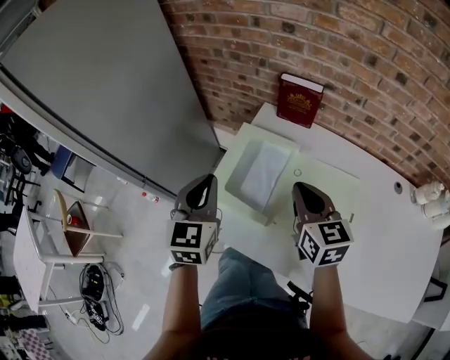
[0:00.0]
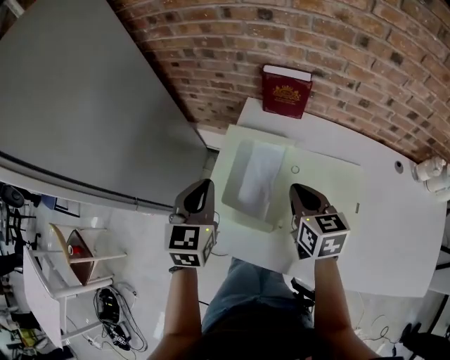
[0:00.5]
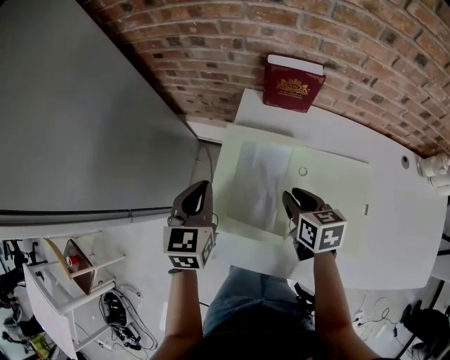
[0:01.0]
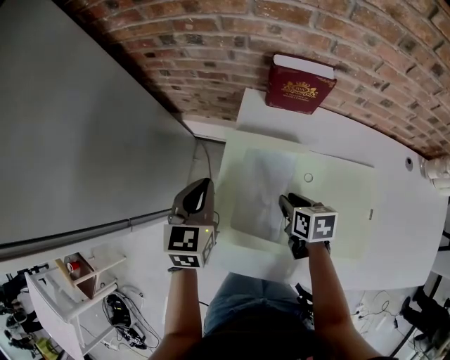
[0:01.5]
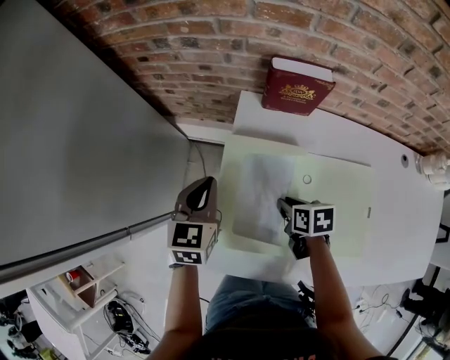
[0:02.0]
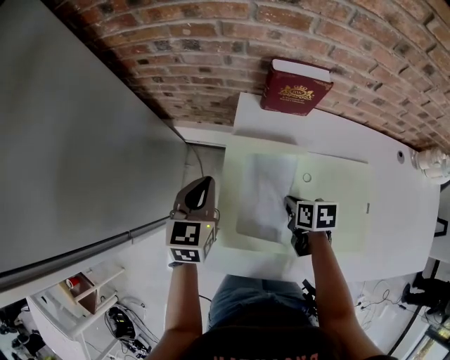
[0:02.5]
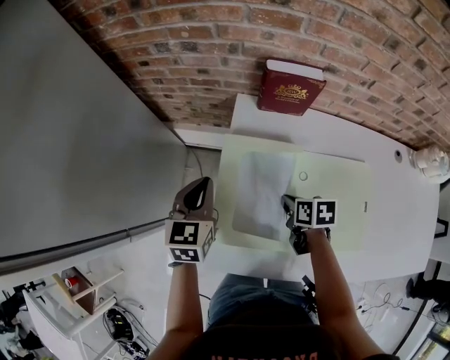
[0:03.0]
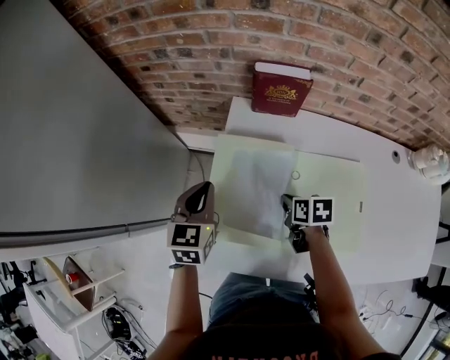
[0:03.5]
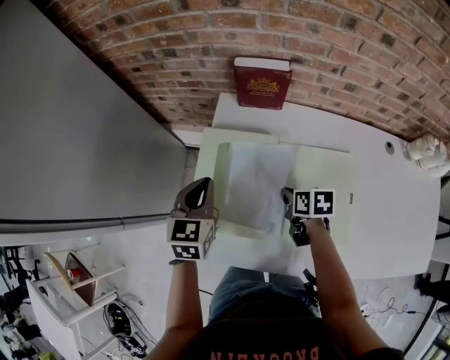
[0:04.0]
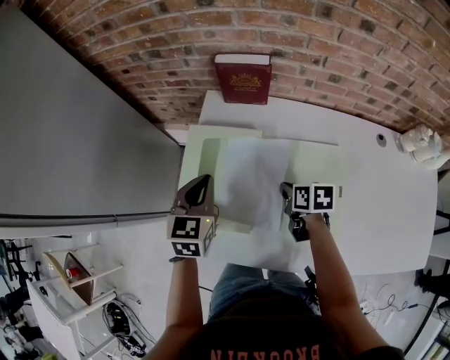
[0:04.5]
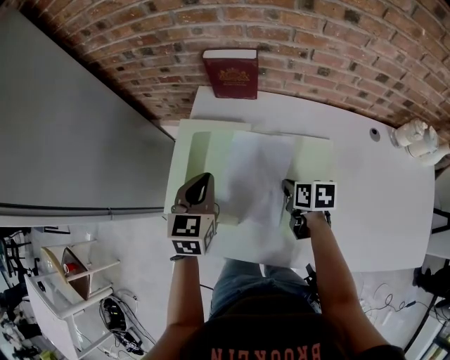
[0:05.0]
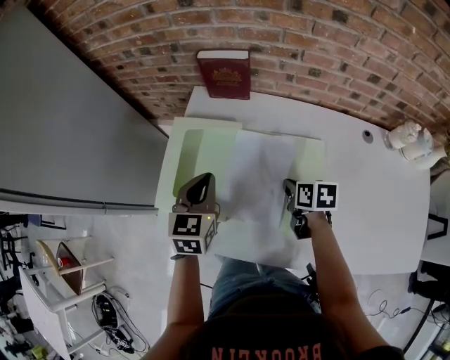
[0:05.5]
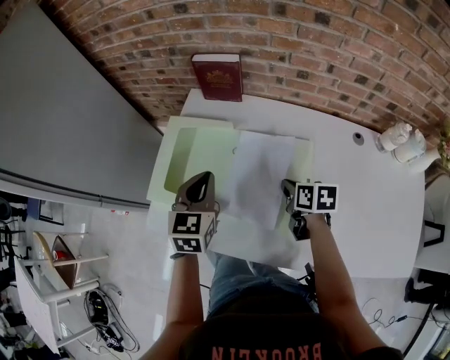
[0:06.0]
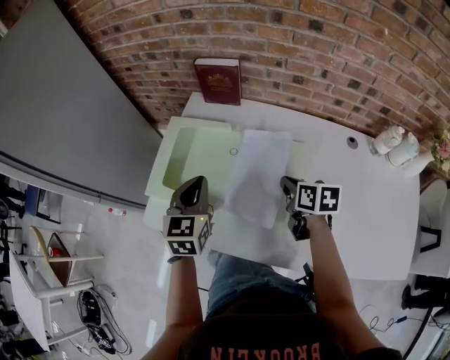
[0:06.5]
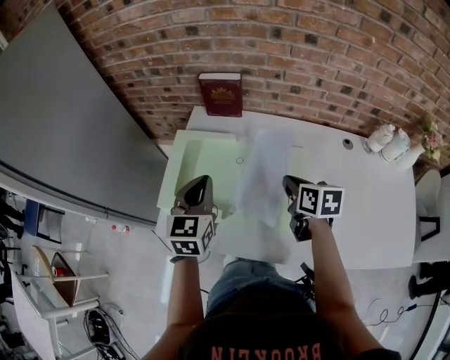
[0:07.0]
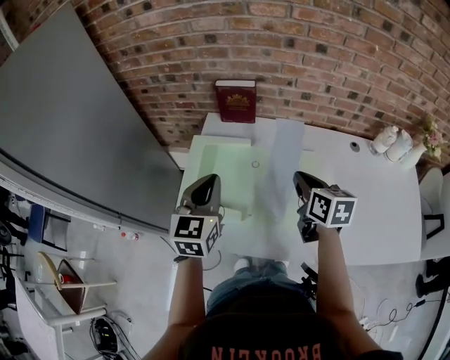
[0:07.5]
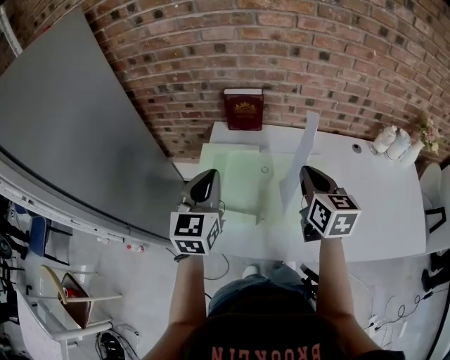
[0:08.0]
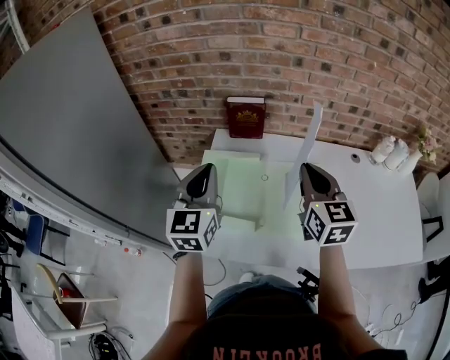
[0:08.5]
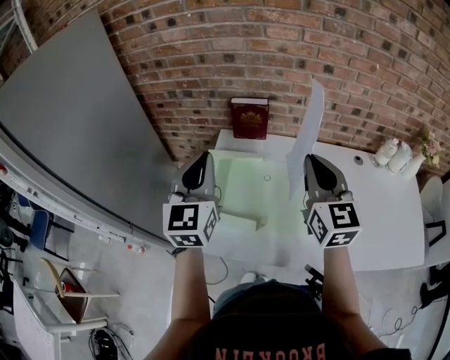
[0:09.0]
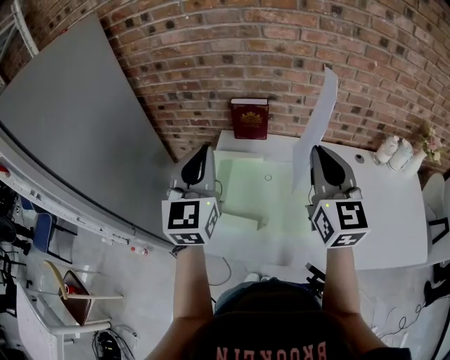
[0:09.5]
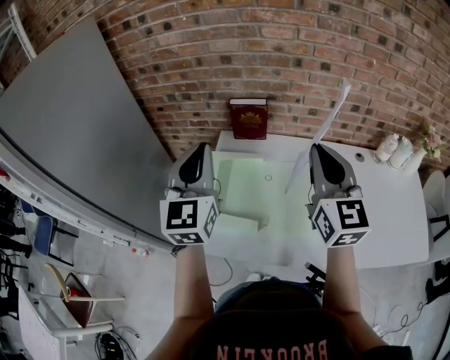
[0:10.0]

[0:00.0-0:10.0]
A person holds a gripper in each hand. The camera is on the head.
0:00.0 to 0:02.0: The left gripper heads forward and downward, covering about 20 cm, and turns by approximately 30 degrees; the right gripper is displaced downward by roughly 25 cm, and tilts its fingers some 40 degrees downward.
0:02.0 to 0:04.0: The left gripper heads backward and to the right, covering about 10 cm. Meanwhile the right gripper travels to the right by roughly 10 cm.
0:04.0 to 0:06.0: The grippers both shift to the right and backward by some 15 cm.
0:06.0 to 0:08.0: Both grippers move upward and to the left, some 20 cm. The right gripper changes its angle by approximately 40 degrees.
0:08.0 to 0:10.0: The two grippers go some 15 cm upward. The right gripper turns by some 30 degrees.

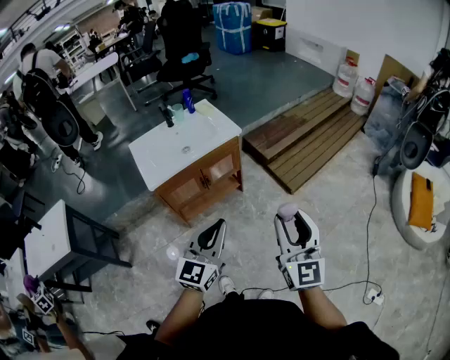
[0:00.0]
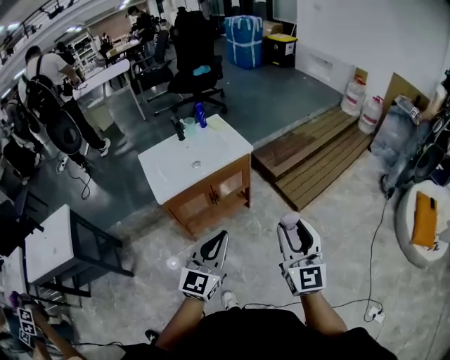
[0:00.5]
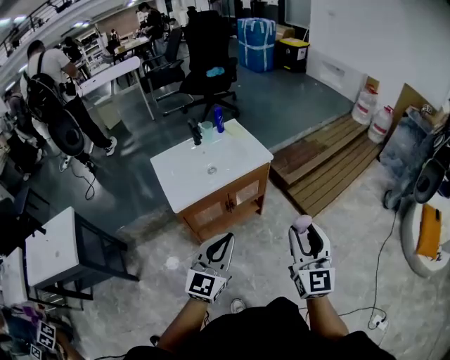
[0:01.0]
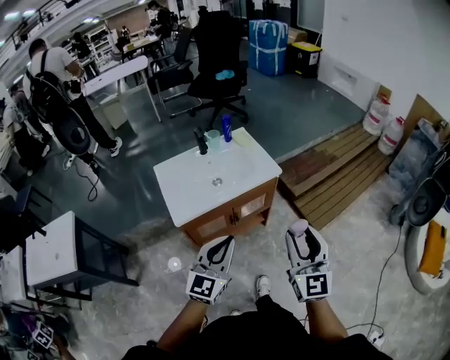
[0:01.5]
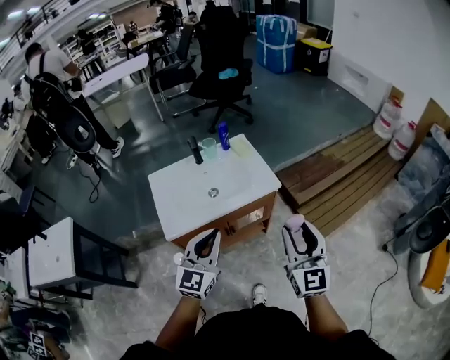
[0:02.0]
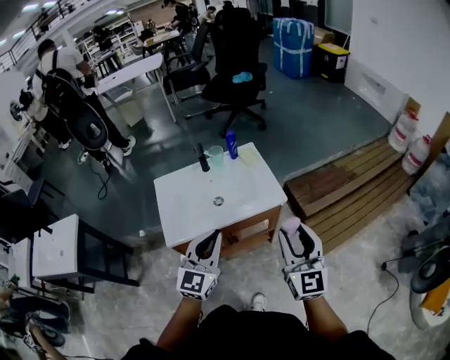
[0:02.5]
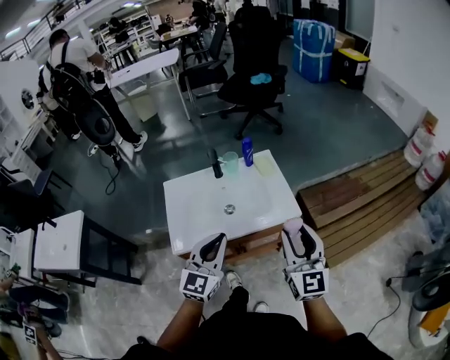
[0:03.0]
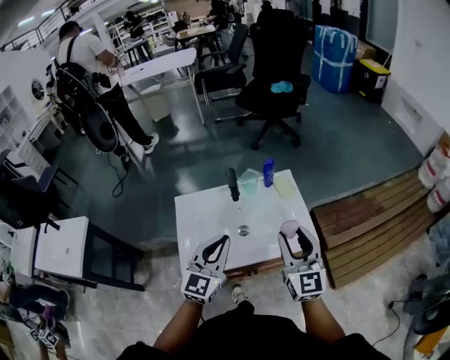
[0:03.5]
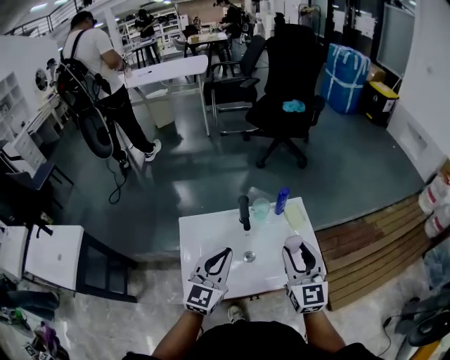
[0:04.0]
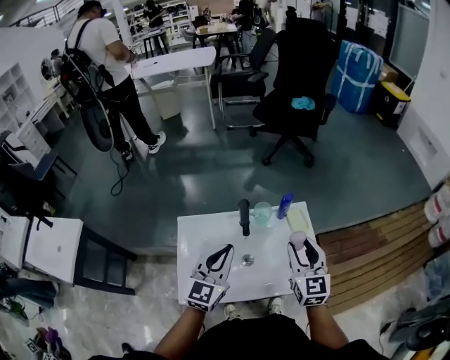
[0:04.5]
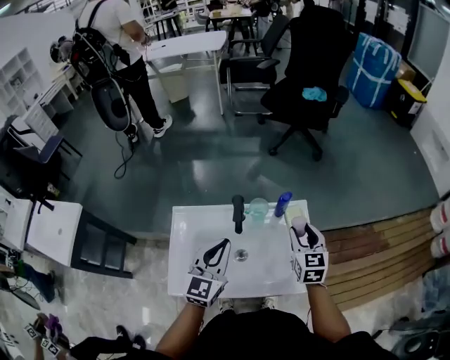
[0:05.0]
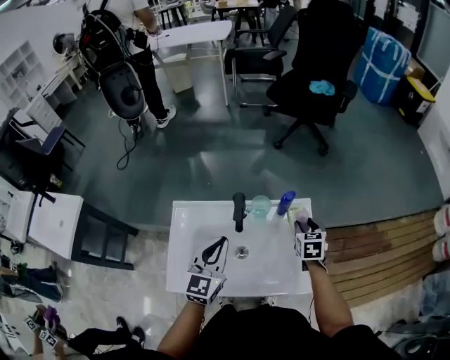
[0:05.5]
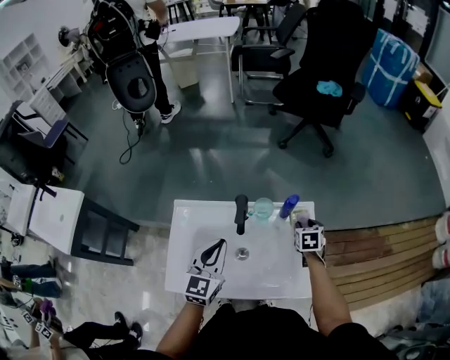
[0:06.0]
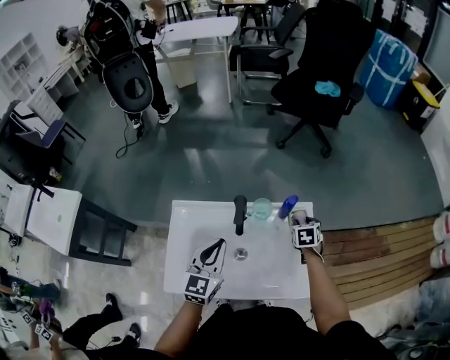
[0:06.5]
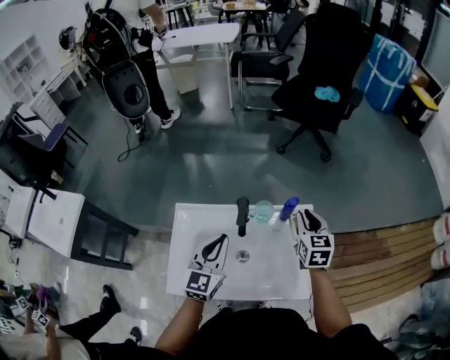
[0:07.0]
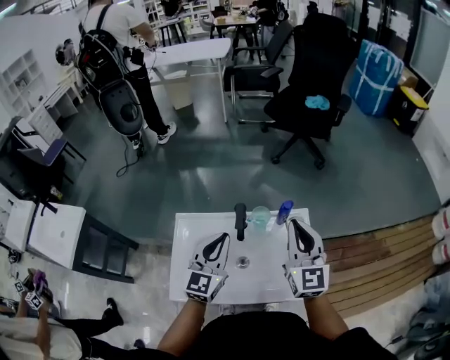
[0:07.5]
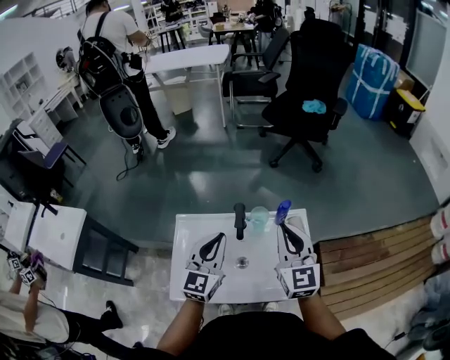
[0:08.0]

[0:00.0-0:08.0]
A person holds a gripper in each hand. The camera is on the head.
0:00.0 to 0:02.0: The right gripper shifts about 30 cm forward. The left gripper shifts roughly 30 cm forward and to the left.
0:02.0 to 0:04.0: The grippers both shift forward and to the left by about 30 cm.
0:04.0 to 0:06.0: The right gripper travels downward and forward by some 35 cm, and tilts its fingers approximately 50 degrees downward. Meanwhile the left gripper shifts about 10 cm downward and forward, and swivels some 20 degrees.
0:06.0 to 0:08.0: The left gripper is displaced upward by some 10 cm, while the right gripper shifts about 30 cm upward, points its fingers about 50 degrees further upward, and closes.

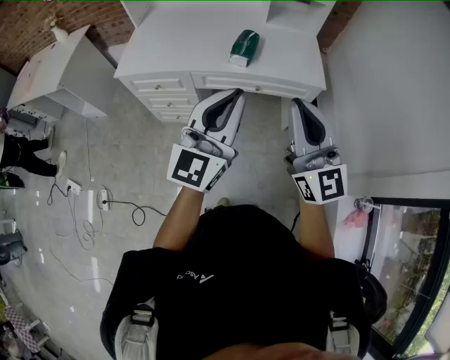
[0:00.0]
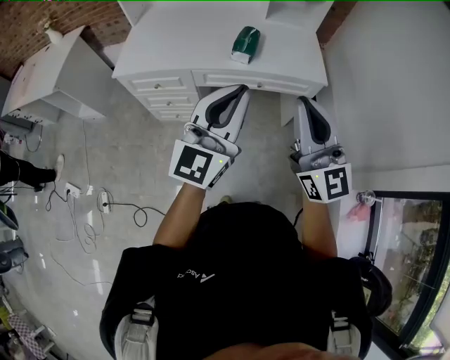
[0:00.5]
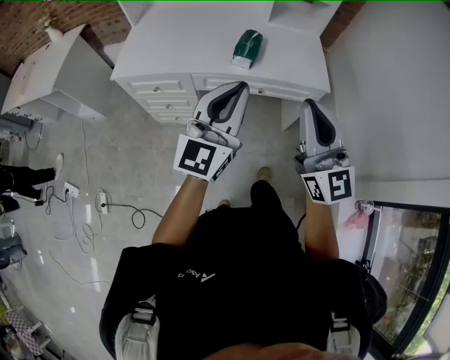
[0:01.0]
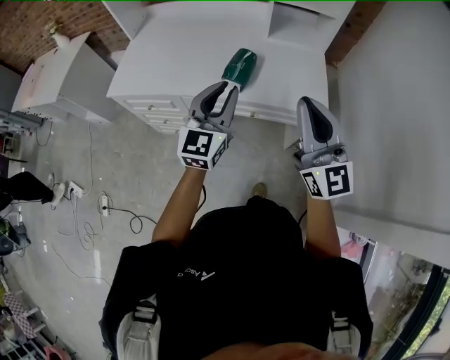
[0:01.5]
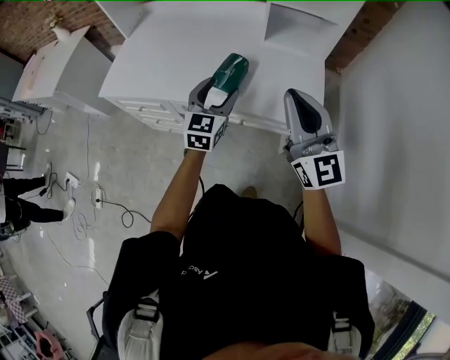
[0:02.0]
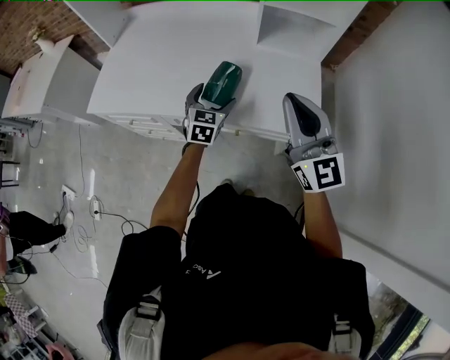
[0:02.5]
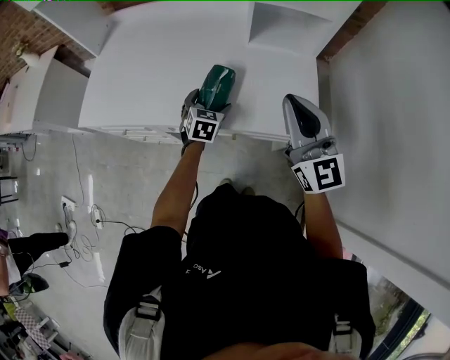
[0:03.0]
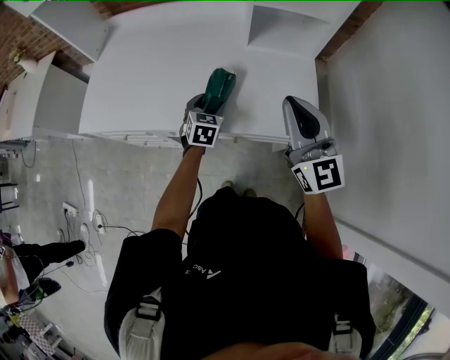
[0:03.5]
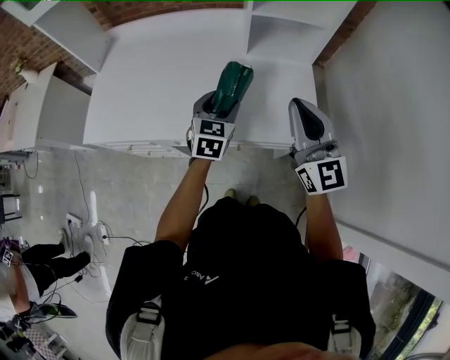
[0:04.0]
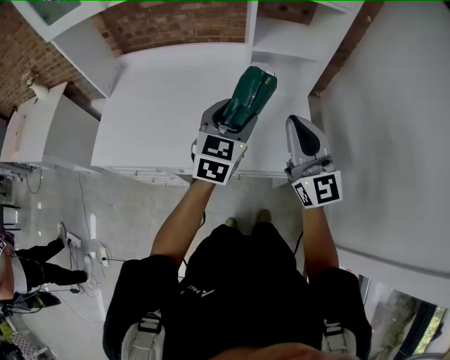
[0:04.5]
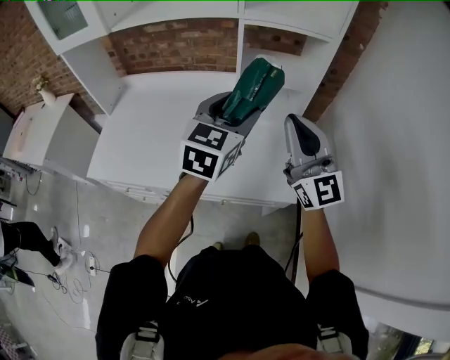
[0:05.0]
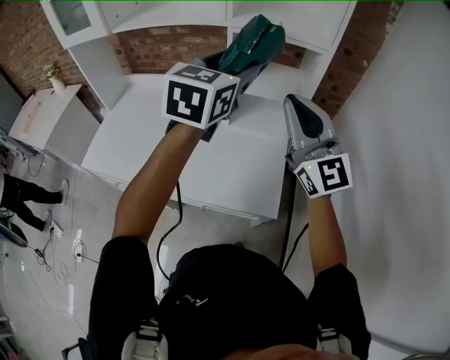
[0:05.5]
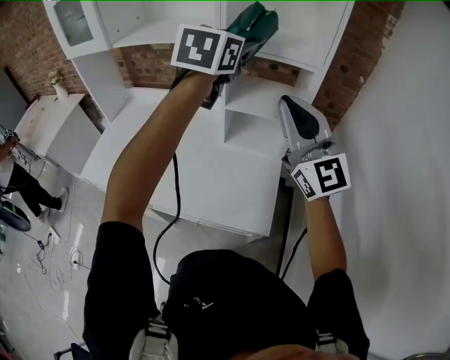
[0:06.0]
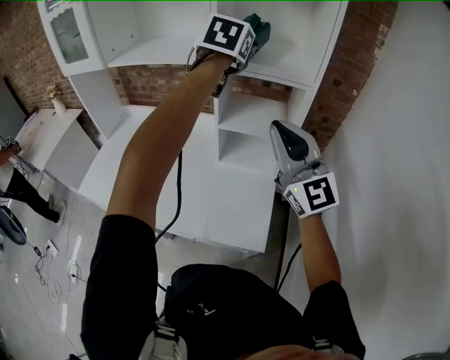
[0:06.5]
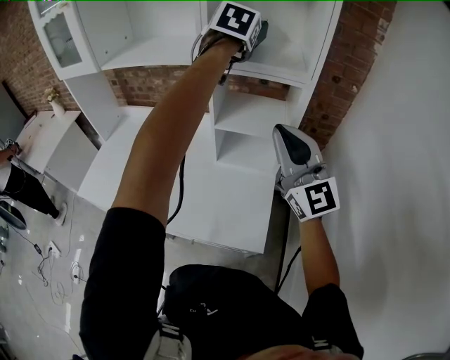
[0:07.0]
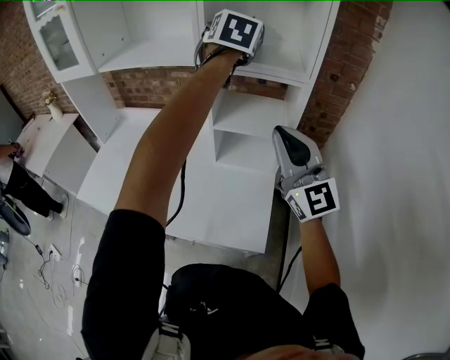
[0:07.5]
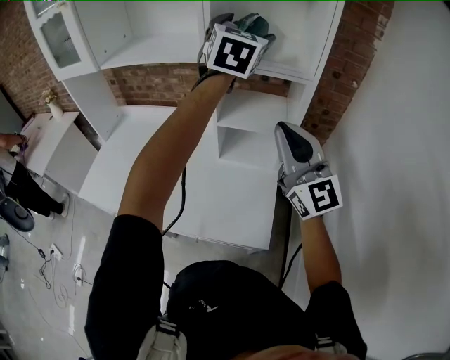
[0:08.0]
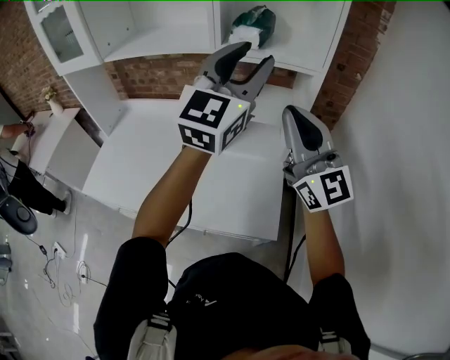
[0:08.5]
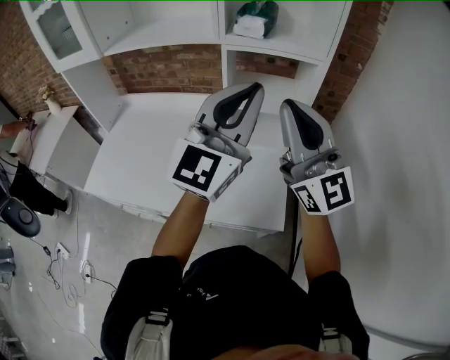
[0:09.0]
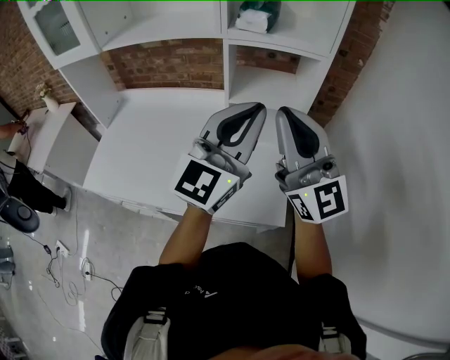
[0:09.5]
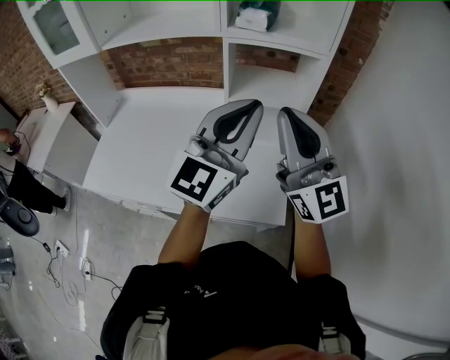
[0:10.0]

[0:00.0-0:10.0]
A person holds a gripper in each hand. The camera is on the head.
0:00.0 to 0:02.0: The right gripper is displaced forward and to the right by some 30 cm; the left gripper moves forward and downward, approximately 40 cm, rotates approximately 30 degrees, and opens its fingers.
0:02.0 to 0:04.0: The two grippers go some 10 cm forward. The left gripper travels downward and back again, about 15 cm each way, and opens, then closes once more.
0:04.0 to 0:06.0: The left gripper shifts about 40 cm upward. Meanwhile the right gripper moves upward, to the right and forward, about 30 cm, and changes its angle by some 20 degrees.
0:06.0 to 0:08.0: The left gripper shifts about 10 cm forward, to the right and upward, swivels approximately 20 degrees, and opens.
0:08.0 to 0:10.0: The right gripper moves backward and to the left, roughly 10 cm. The left gripper travels backward and downward by roughly 25 cm, swivels roughly 30 degrees, and closes its fingers.
